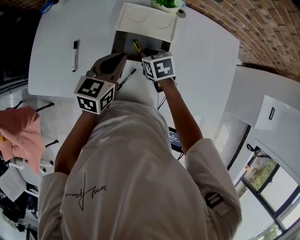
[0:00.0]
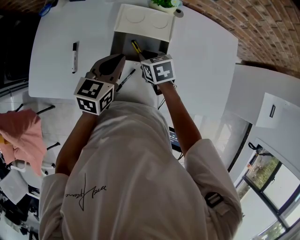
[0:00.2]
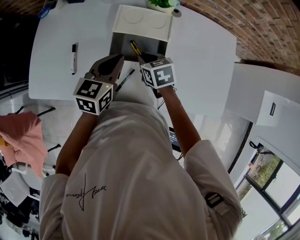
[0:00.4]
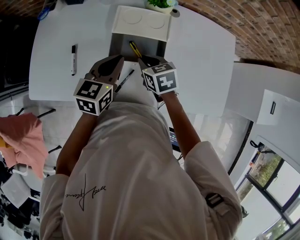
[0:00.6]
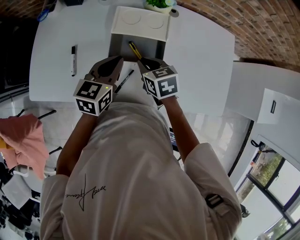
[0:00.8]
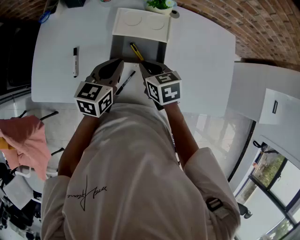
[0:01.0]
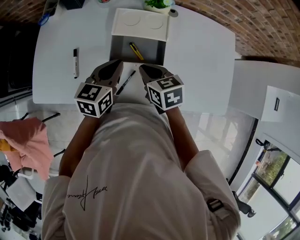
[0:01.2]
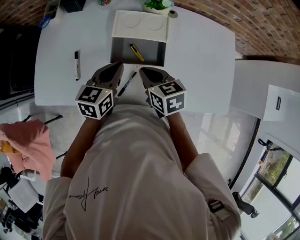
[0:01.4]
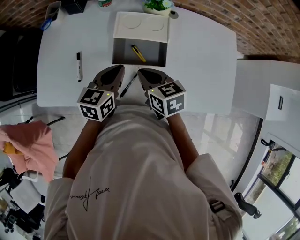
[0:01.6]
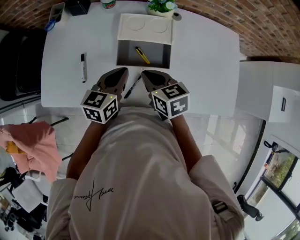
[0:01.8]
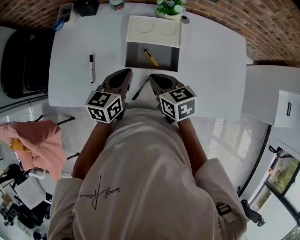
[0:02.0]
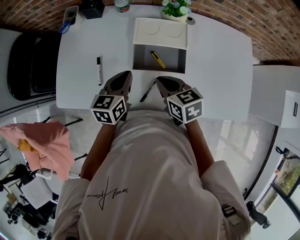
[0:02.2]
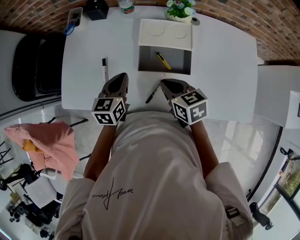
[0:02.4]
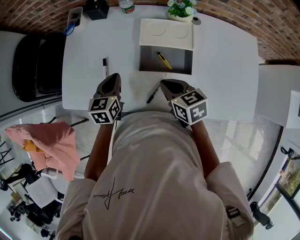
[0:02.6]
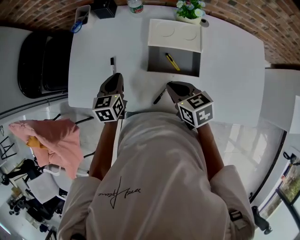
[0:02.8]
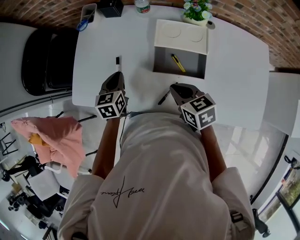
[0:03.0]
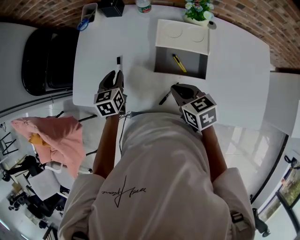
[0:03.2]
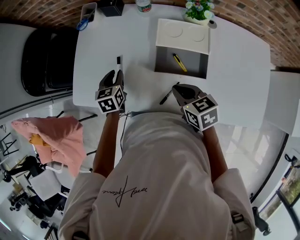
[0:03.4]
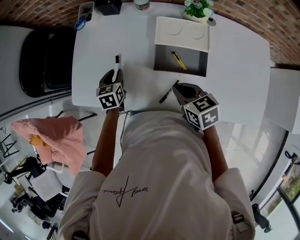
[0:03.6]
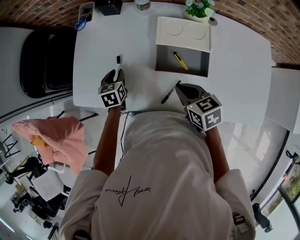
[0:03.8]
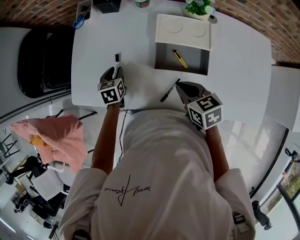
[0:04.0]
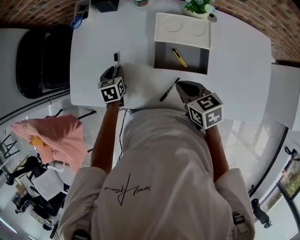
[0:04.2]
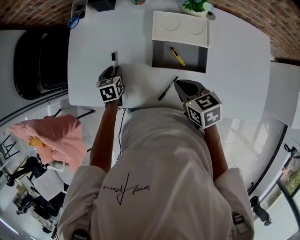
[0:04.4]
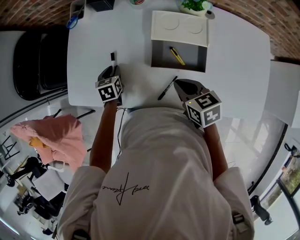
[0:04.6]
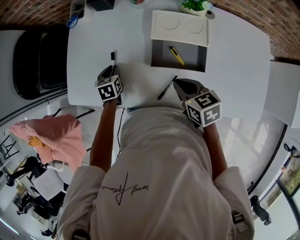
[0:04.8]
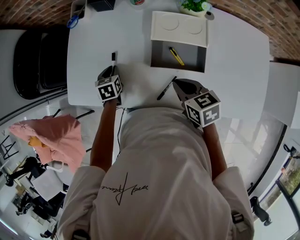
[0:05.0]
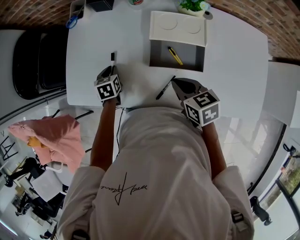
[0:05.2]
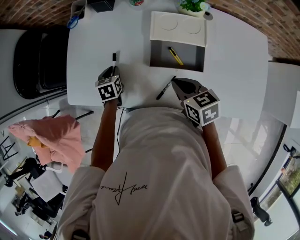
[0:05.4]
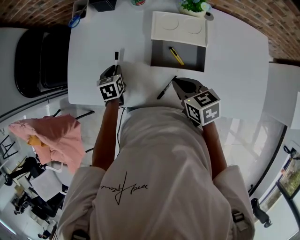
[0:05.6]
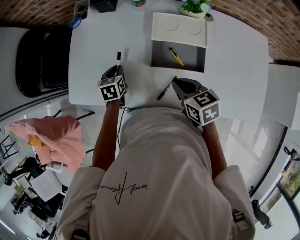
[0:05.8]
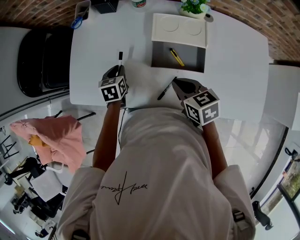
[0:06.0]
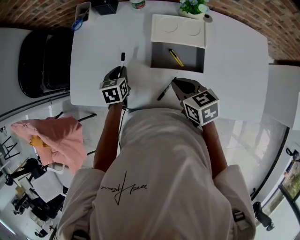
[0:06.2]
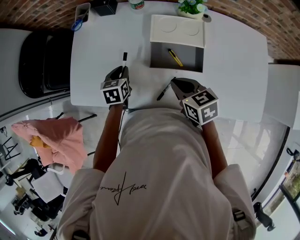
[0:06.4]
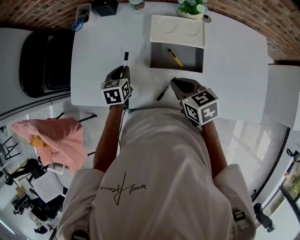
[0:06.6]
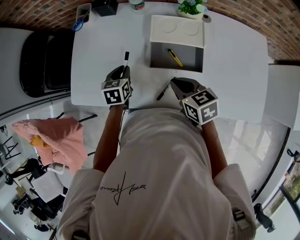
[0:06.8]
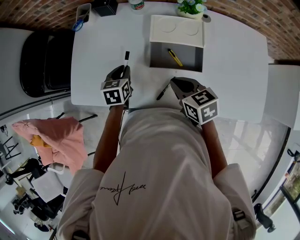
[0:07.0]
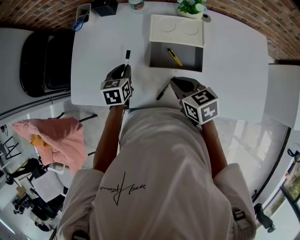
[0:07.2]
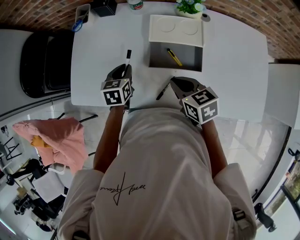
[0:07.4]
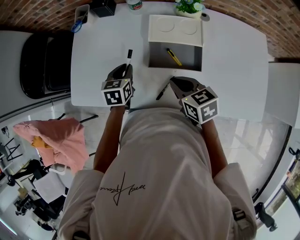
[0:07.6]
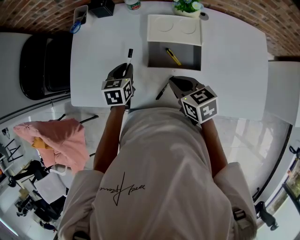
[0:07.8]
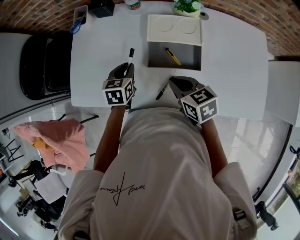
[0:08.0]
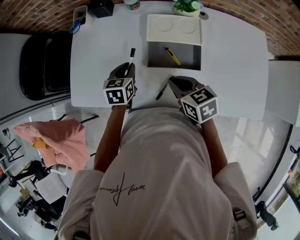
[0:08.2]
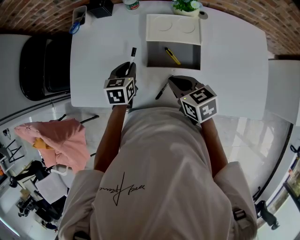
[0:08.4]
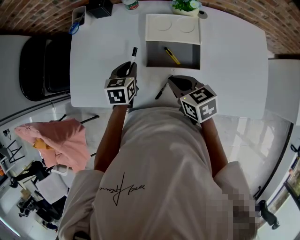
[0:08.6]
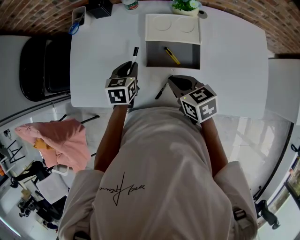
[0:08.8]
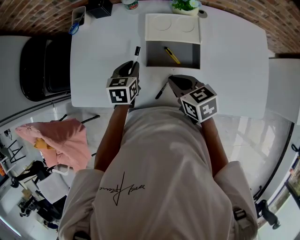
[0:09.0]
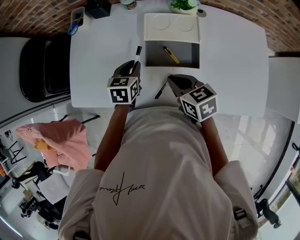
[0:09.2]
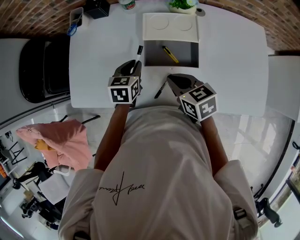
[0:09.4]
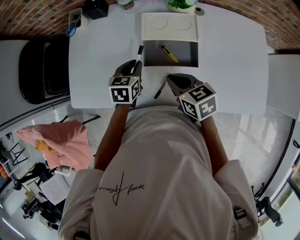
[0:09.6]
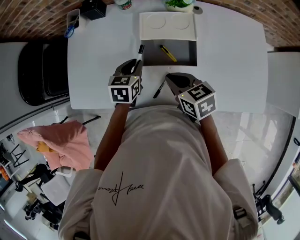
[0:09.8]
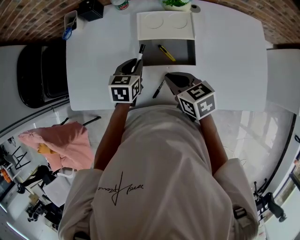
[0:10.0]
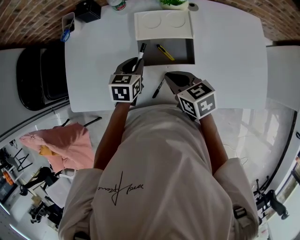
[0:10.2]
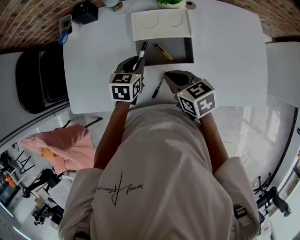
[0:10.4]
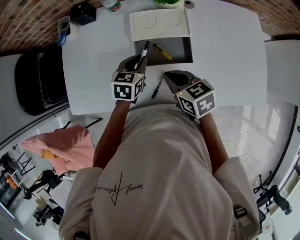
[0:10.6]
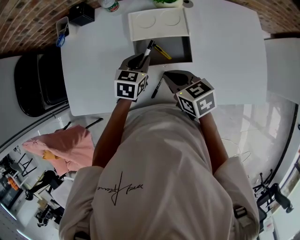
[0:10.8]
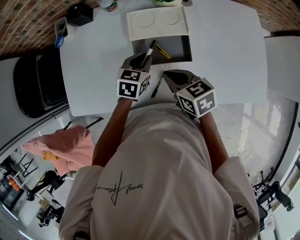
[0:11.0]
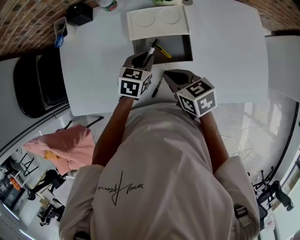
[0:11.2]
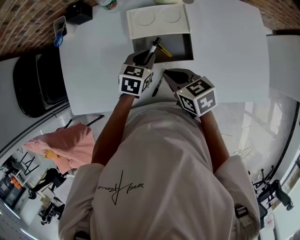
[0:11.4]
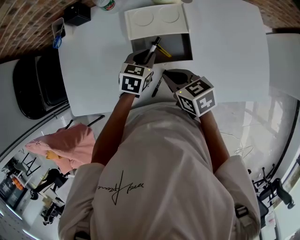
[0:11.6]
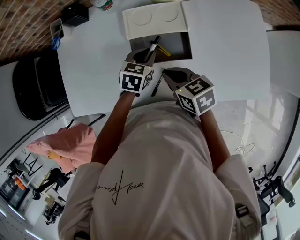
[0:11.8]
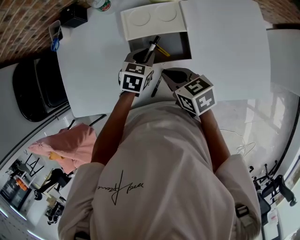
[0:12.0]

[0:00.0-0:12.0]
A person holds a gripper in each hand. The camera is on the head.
0:00.0 to 0:01.6: The right gripper heads upward and backward, covering some 15 cm.
0:01.6 to 0:03.0: The left gripper travels to the left by some 15 cm, and turns by roughly 30 degrees.
0:03.0 to 0:04.4: The left gripper shifts about 10 cm downward, and opens its fingers.
0:04.4 to 0:06.0: The grippers stay close to where they were, moving slightly.
0:06.0 to 0:07.6: The left gripper moves to the right and upward, about 10 cm.
0:07.6 to 0:09.0: There are only small adjustments of the grippers.
0:09.0 to 0:10.4: The left gripper goes about 5 cm to the right.
0:10.4 to 0:12.0: The left gripper is displaced to the right by approximately 5 cm.

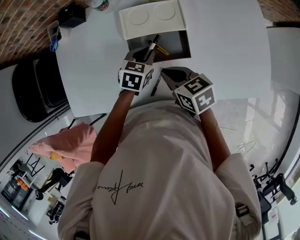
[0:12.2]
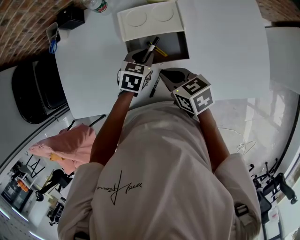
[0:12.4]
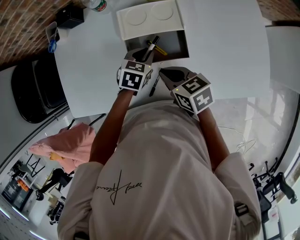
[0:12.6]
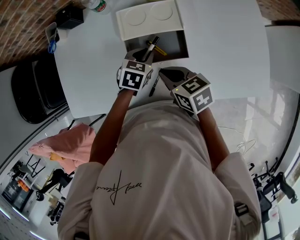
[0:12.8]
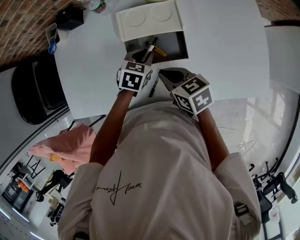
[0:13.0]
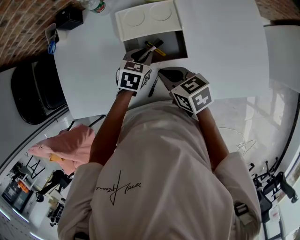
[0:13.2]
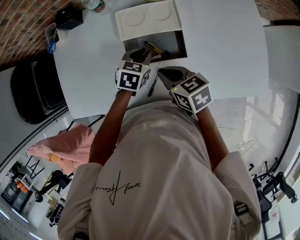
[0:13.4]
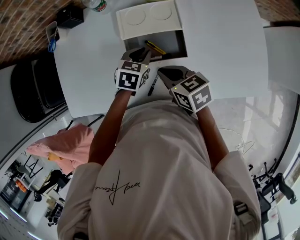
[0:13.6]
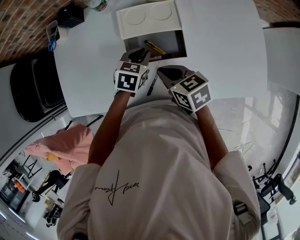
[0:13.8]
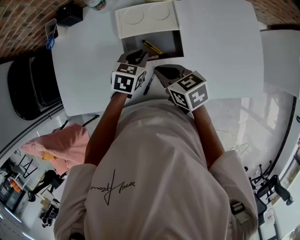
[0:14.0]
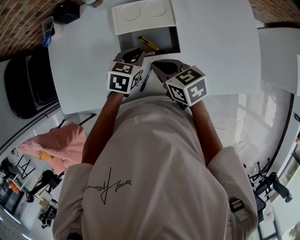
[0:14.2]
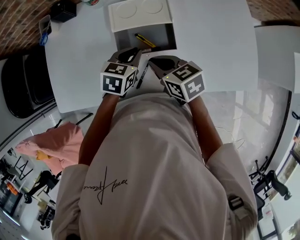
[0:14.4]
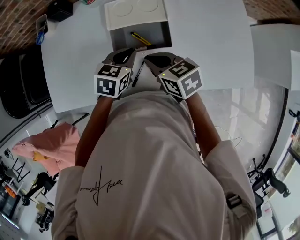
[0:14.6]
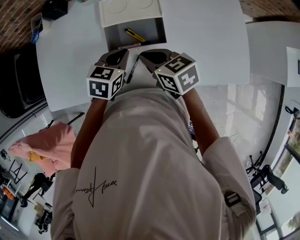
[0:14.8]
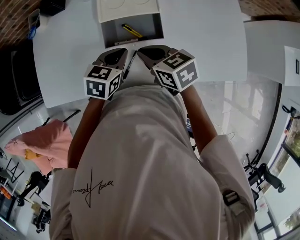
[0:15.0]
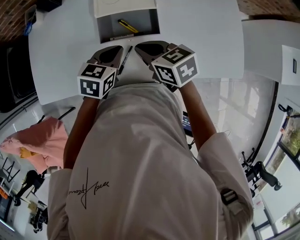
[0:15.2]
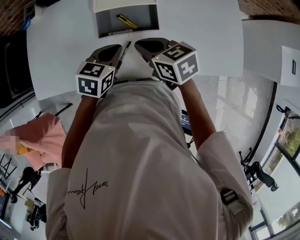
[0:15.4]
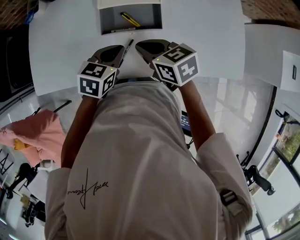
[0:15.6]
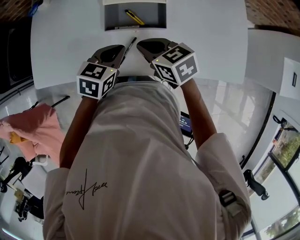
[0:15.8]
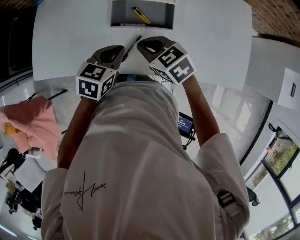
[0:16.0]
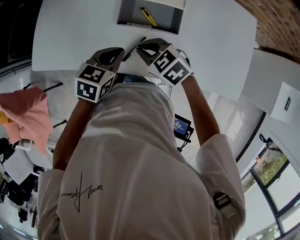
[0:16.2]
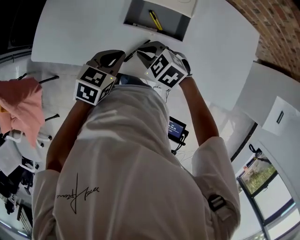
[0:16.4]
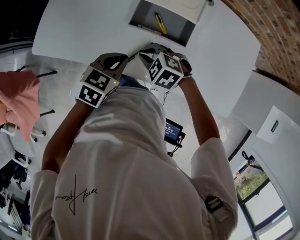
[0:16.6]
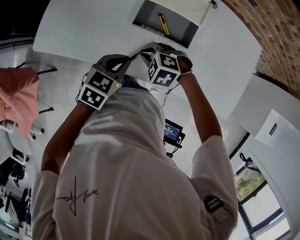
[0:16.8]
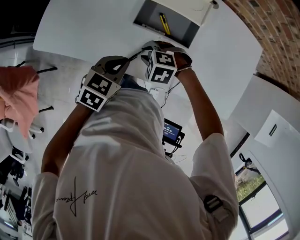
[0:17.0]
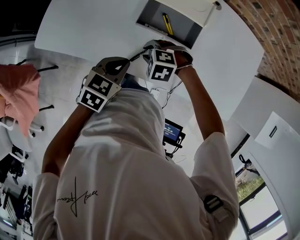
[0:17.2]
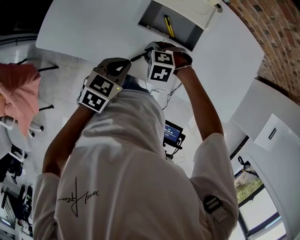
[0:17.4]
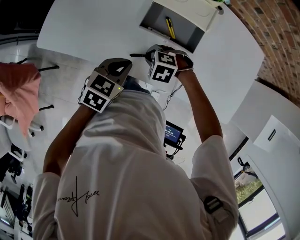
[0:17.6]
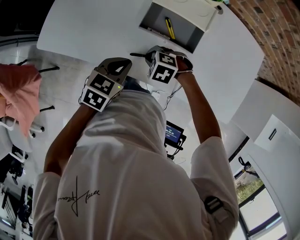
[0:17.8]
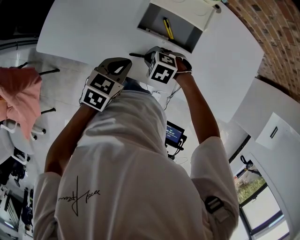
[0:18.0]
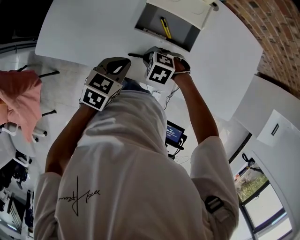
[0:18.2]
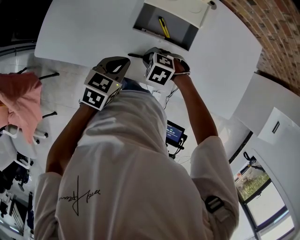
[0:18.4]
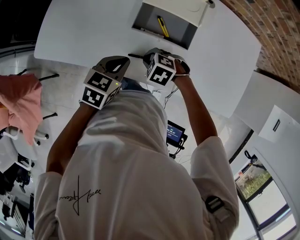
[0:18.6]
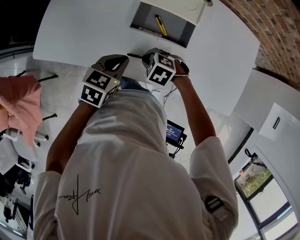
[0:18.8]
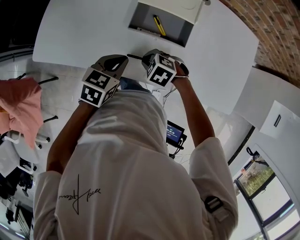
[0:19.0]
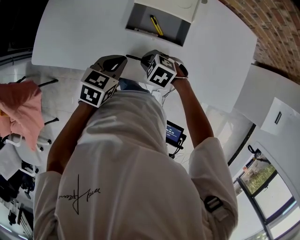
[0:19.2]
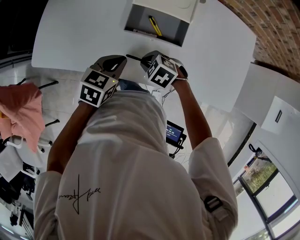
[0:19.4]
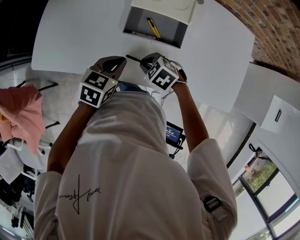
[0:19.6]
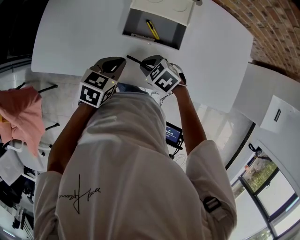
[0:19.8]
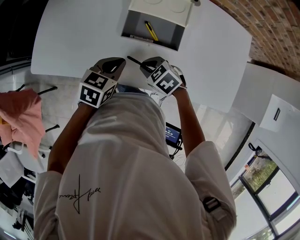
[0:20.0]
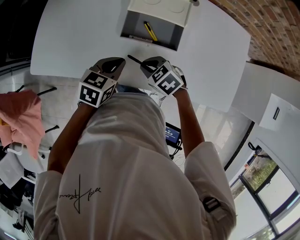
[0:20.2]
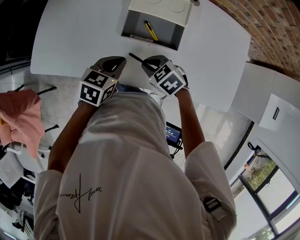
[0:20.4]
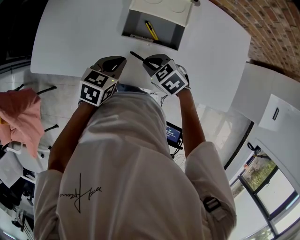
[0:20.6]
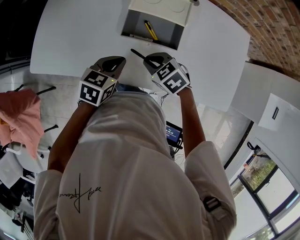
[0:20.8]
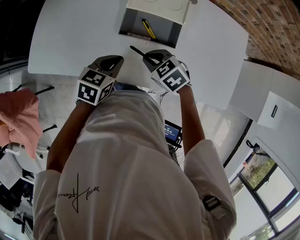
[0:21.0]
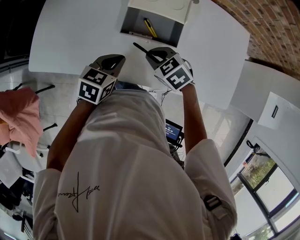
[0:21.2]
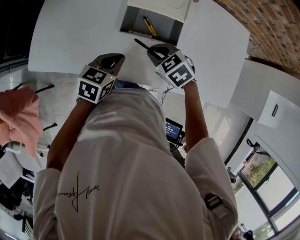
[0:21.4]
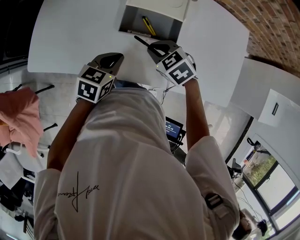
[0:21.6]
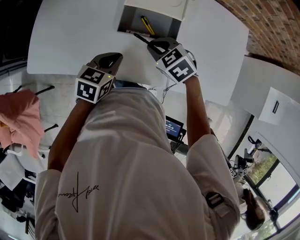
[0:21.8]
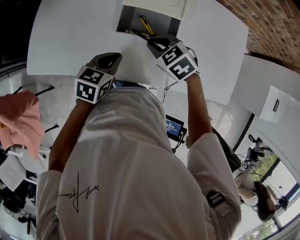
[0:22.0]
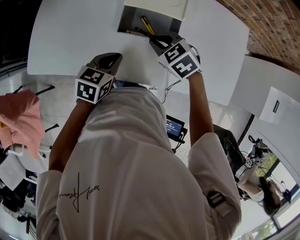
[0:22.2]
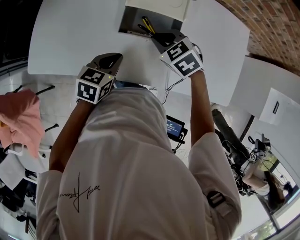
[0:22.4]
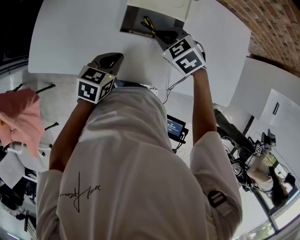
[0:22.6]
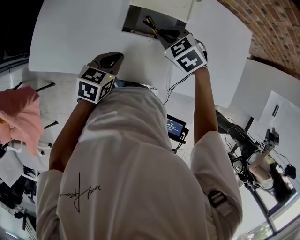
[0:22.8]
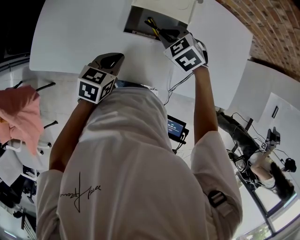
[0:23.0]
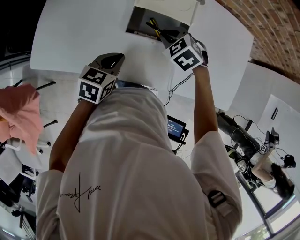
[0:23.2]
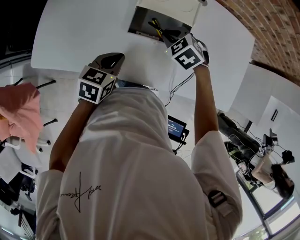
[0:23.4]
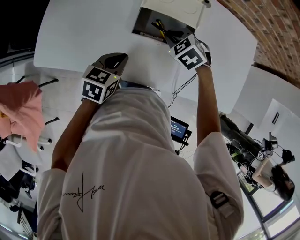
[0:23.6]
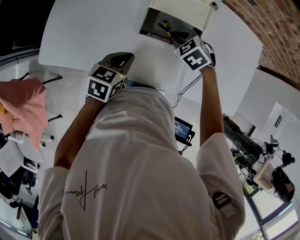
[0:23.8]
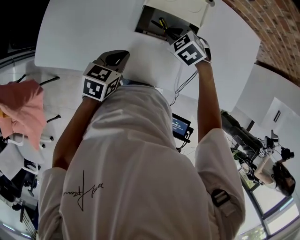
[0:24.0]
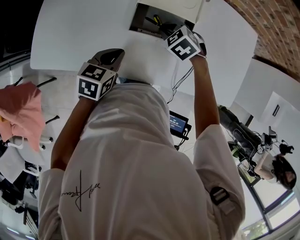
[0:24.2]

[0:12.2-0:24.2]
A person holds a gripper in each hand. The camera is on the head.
0:12.2 to 0:13.8: Neither gripper changes place.
0:13.8 to 0:15.2: The left gripper heads backward, covering about 10 cm.
0:15.2 to 0:16.6: The left gripper travels backward and to the left by some 10 cm; the right gripper is displaced downward and to the left by approximately 10 cm, and rolls counterclockwise, seen from behind, by about 60 degrees.
0:16.6 to 0:18.2: The right gripper heads downward, covering some 5 cm.
0:18.2 to 0:19.8: The right gripper rotates about 30 degrees.
0:19.8 to 0:21.2: The right gripper ends up approximately 5 cm from where it was.
0:21.2 to 0:22.6: The right gripper is displaced forward by some 5 cm.
0:22.6 to 0:24.2: The right gripper shifts approximately 5 cm downward.
